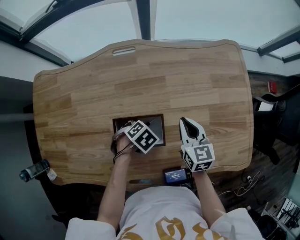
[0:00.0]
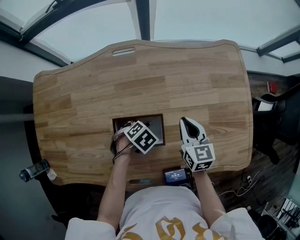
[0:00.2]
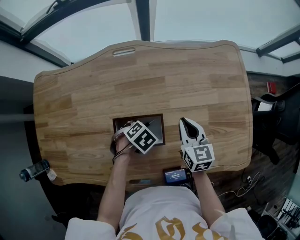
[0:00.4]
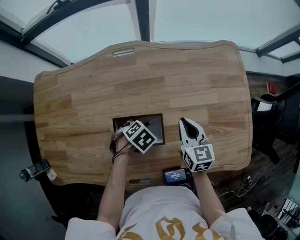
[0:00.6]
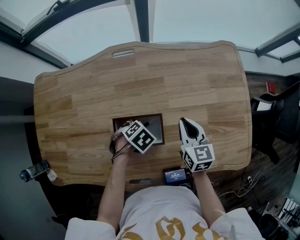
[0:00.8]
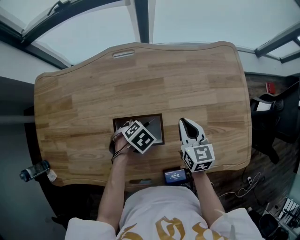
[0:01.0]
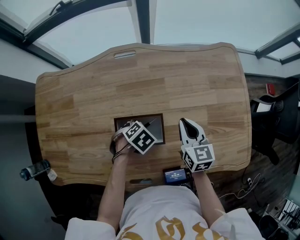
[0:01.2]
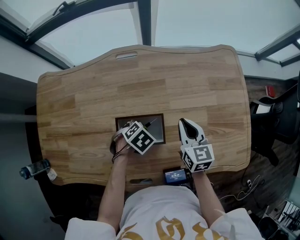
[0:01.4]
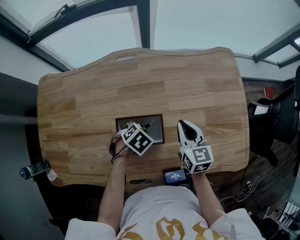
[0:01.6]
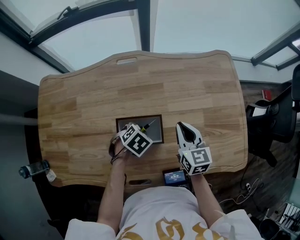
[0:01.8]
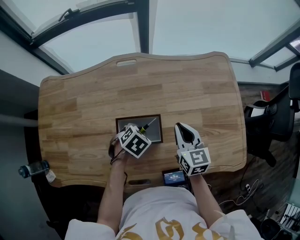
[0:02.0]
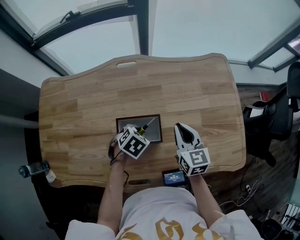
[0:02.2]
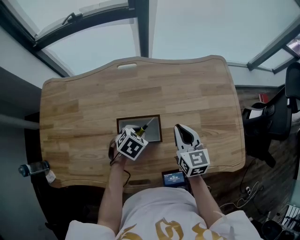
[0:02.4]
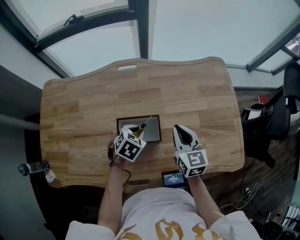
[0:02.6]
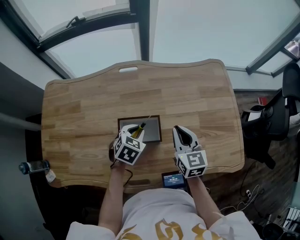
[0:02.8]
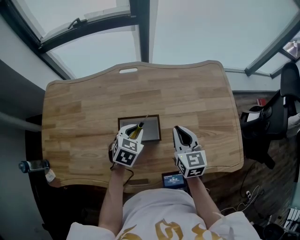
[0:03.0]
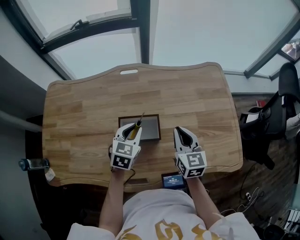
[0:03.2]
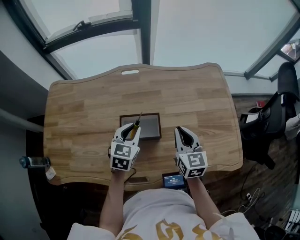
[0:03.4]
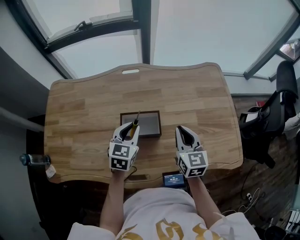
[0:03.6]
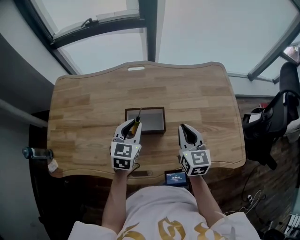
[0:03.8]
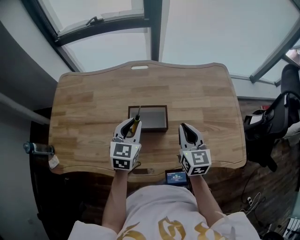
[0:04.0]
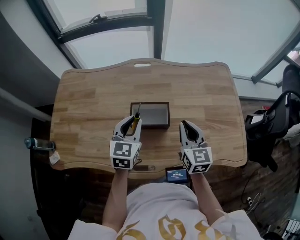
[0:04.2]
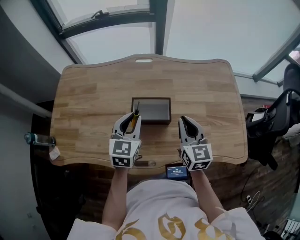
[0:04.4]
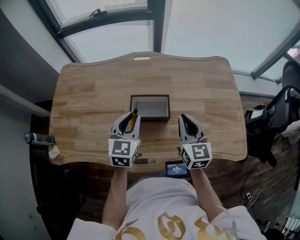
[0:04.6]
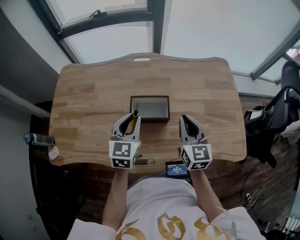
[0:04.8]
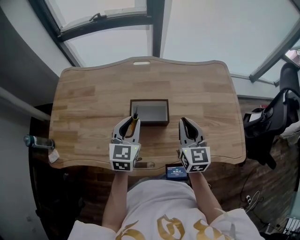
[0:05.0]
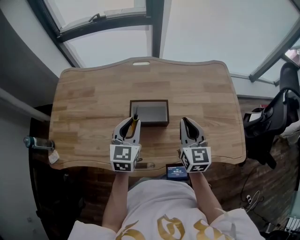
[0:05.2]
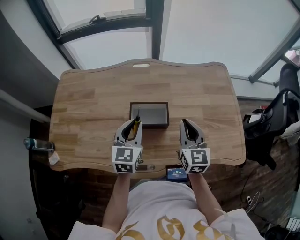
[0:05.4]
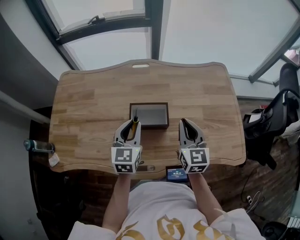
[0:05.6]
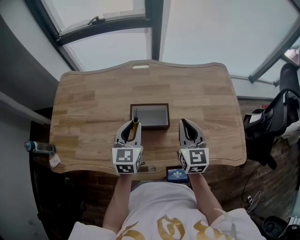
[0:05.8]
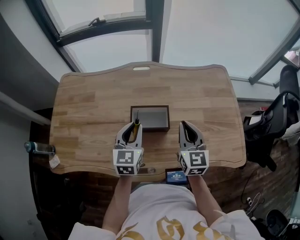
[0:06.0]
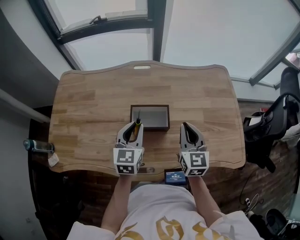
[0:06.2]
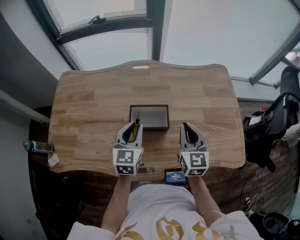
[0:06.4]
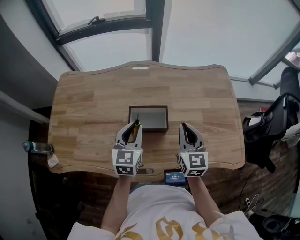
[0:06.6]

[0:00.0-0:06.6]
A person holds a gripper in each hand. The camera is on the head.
0:00.0 to 0:01.6: The grippers make only small movements.
0:01.6 to 0:03.2: The left gripper travels upward by some 10 cm, and tips its fingers upward by some 40 degrees, while the right gripper is displaced upward by roughly 5 cm.
0:03.2 to 0:05.0: Both grippers travel together backward and upward, approximately 10 cm.
0:05.0 to 0:06.6: The grippers make only small movements.

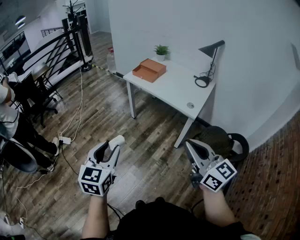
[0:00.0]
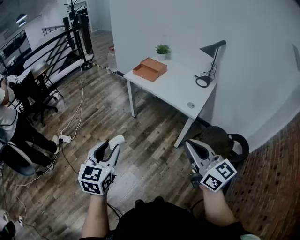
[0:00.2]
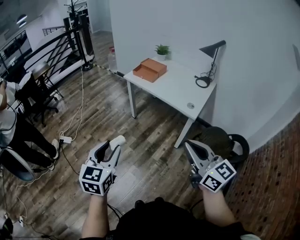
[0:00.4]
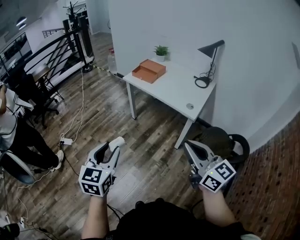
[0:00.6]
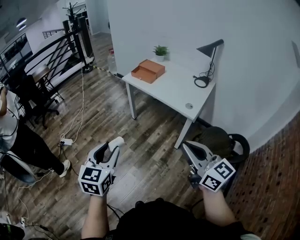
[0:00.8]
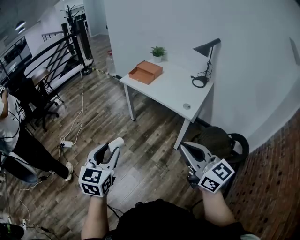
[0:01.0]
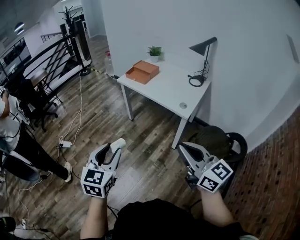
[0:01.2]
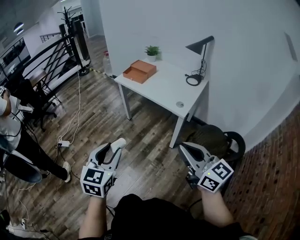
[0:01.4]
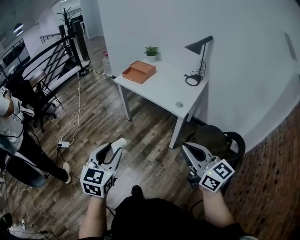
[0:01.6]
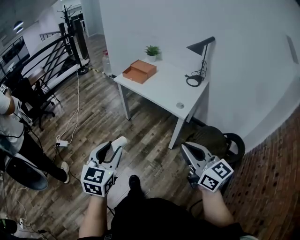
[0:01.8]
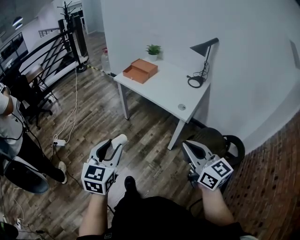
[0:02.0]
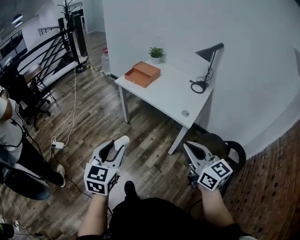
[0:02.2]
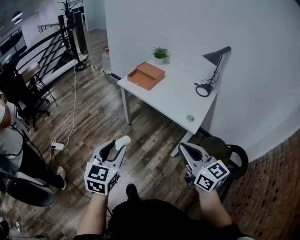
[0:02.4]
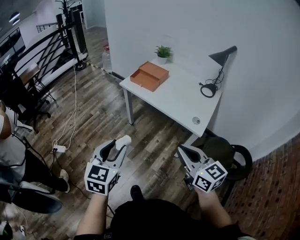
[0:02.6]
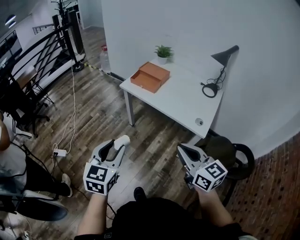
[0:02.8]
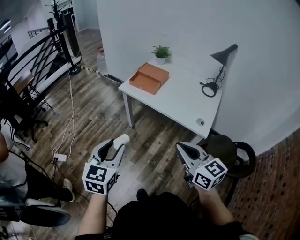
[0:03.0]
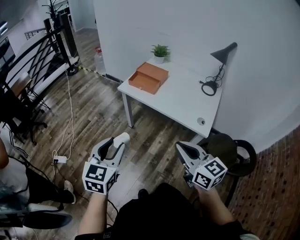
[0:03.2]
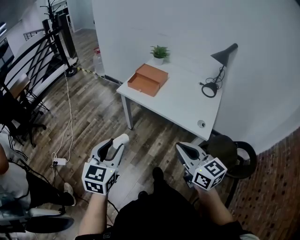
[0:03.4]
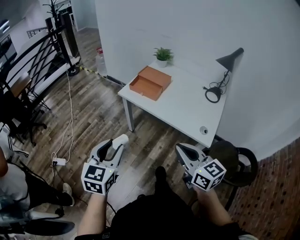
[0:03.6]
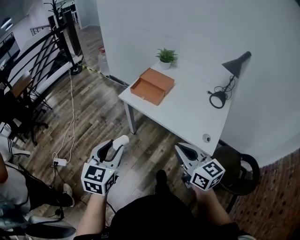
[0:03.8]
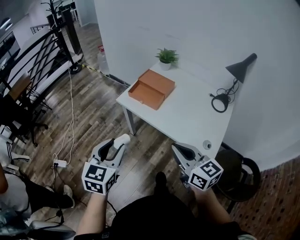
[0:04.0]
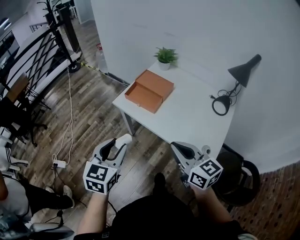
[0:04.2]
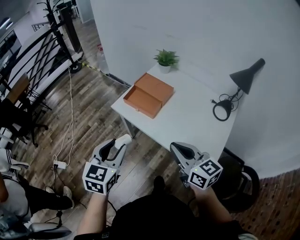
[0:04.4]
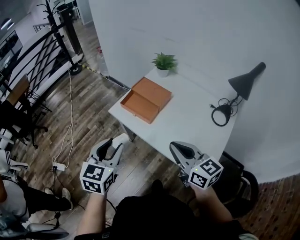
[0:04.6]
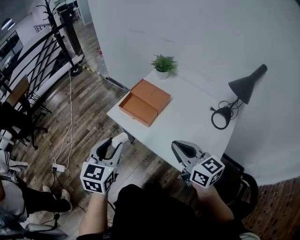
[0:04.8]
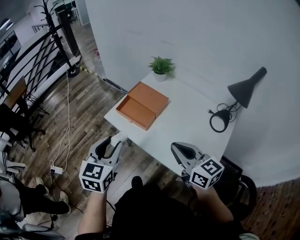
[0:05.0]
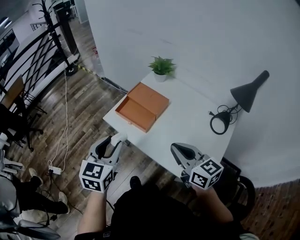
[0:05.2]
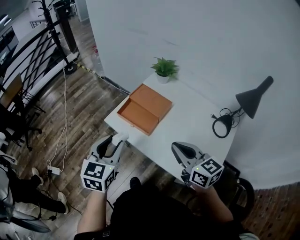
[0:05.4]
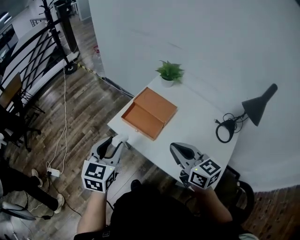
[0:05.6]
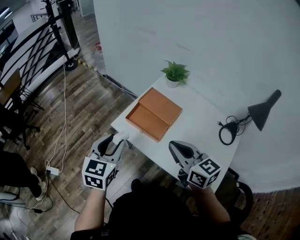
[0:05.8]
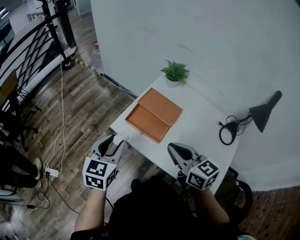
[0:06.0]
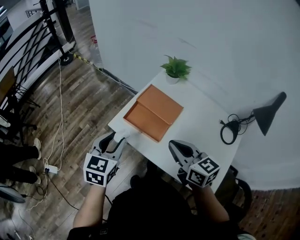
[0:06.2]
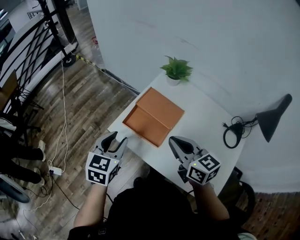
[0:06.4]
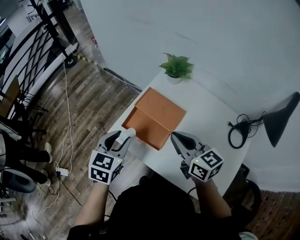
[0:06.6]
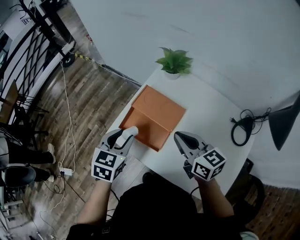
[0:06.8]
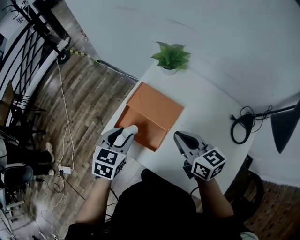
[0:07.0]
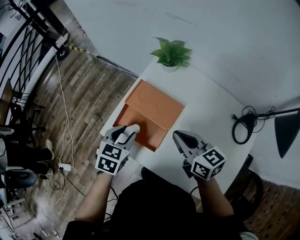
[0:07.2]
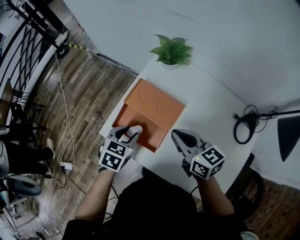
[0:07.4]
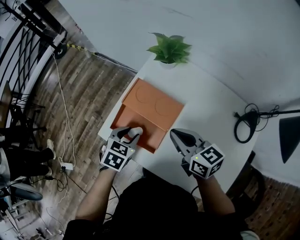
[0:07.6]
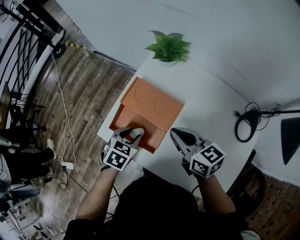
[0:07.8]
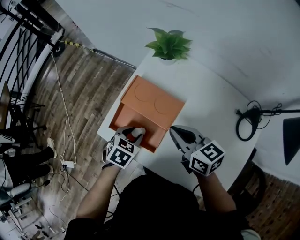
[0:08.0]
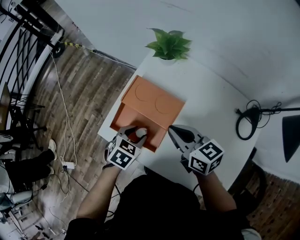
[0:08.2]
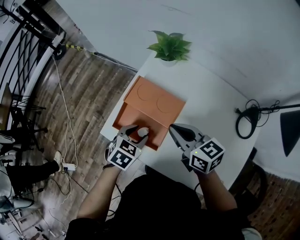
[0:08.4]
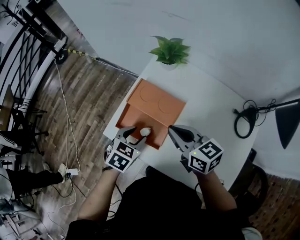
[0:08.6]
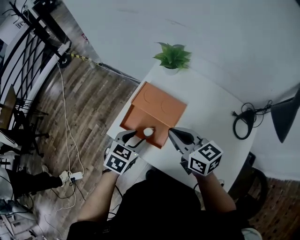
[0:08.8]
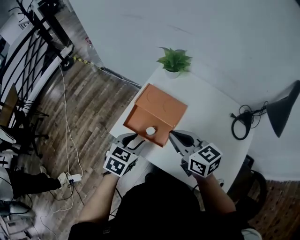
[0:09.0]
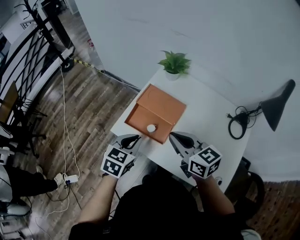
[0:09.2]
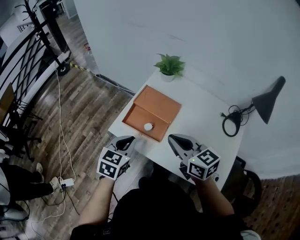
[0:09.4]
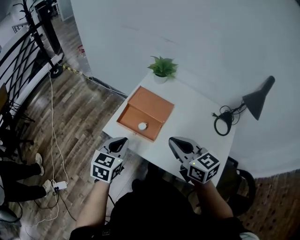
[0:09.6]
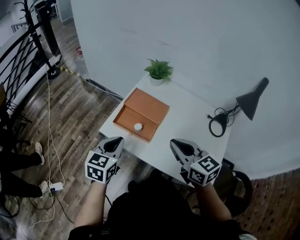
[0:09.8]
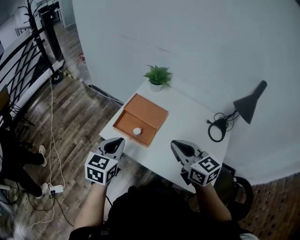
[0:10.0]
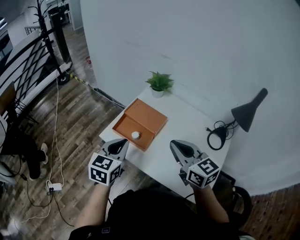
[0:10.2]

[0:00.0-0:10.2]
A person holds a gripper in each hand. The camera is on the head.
0:00.0 to 0:01.4: Both grippers travel together to the right, about 10 cm.
0:01.4 to 0:03.0: The left gripper moves forward, roughly 30 cm. The right gripper shifts approximately 30 cm forward and to the left.
0:03.0 to 0:04.4: The two grippers go roughly 30 cm forward.
0:04.4 to 0:05.8: Both grippers travel together forward, approximately 20 cm.
0:05.8 to 0:07.2: Both grippers travel together forward, downward and to the right, approximately 25 cm. The left gripper swivels about 30 degrees.
0:07.2 to 0:08.8: The right gripper shifts by approximately 5 cm, while the left gripper moves roughly 10 cm downward and comes back.
0:08.8 to 0:10.2: The left gripper is displaced upward and backward by about 20 cm, changes its angle by approximately 30 degrees, and closes its fingers, while the right gripper is displaced backward and upward by approximately 15 cm.

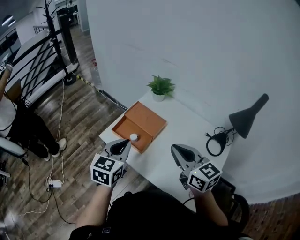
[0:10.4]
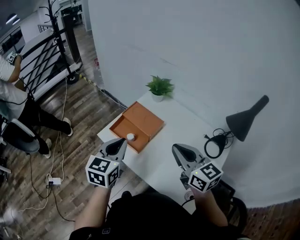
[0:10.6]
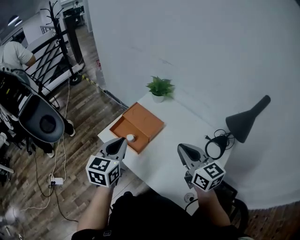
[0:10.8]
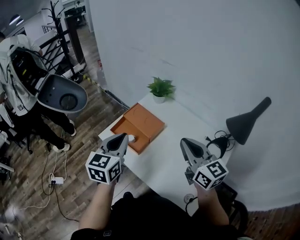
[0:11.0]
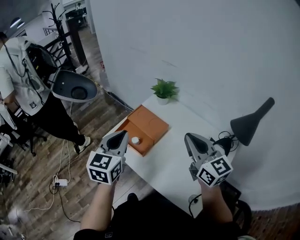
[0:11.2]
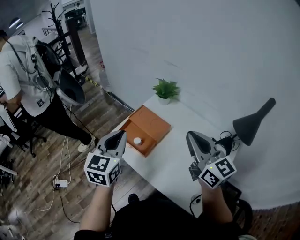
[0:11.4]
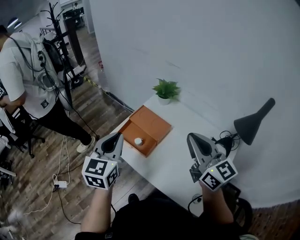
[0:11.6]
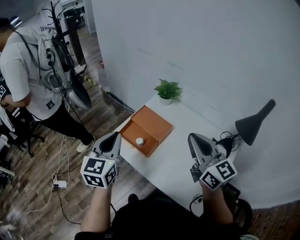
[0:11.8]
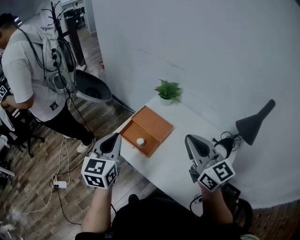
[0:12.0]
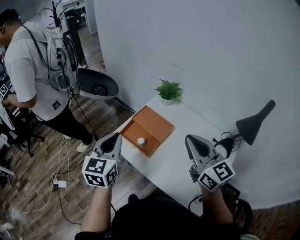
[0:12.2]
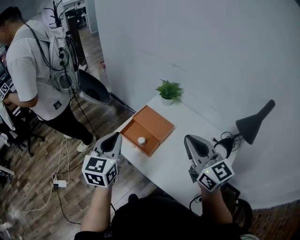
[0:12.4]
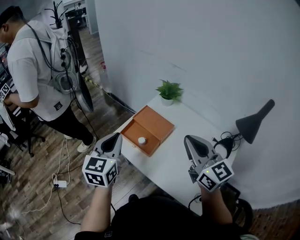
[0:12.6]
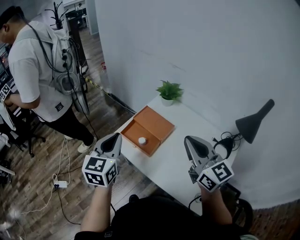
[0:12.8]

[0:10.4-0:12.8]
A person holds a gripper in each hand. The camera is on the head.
0:10.4 to 0:11.6: The grippers both shift upward by roughly 10 cm.
0:11.6 to 0:12.8: The grippers move only a little.

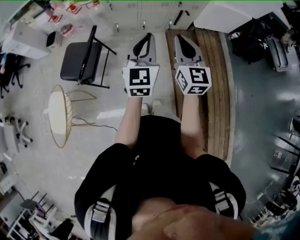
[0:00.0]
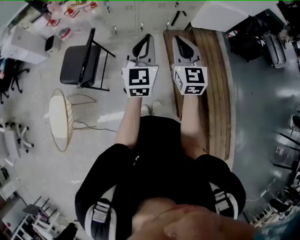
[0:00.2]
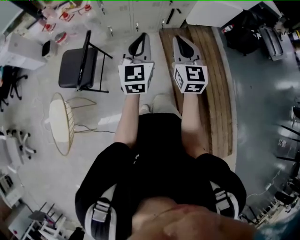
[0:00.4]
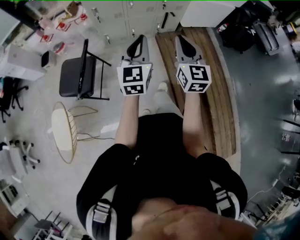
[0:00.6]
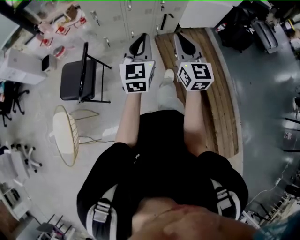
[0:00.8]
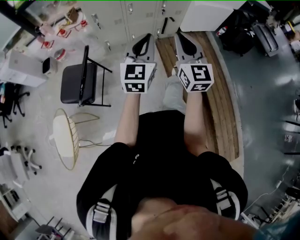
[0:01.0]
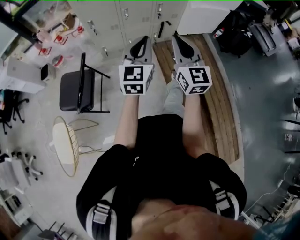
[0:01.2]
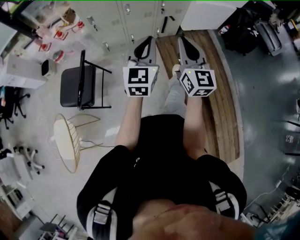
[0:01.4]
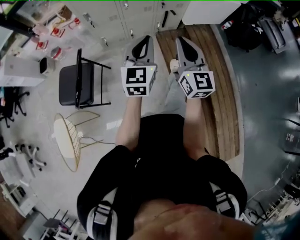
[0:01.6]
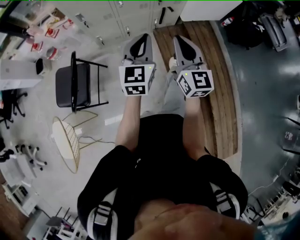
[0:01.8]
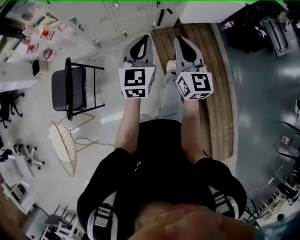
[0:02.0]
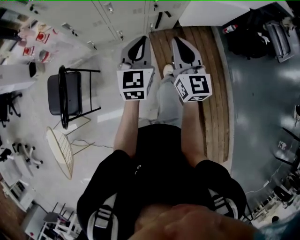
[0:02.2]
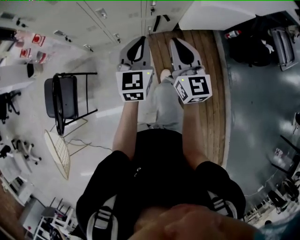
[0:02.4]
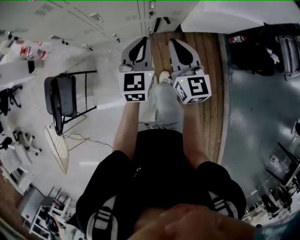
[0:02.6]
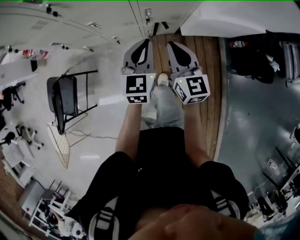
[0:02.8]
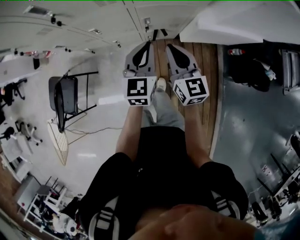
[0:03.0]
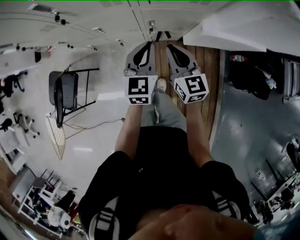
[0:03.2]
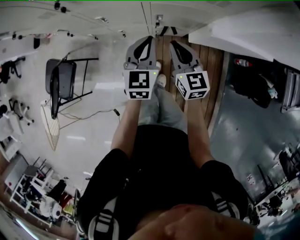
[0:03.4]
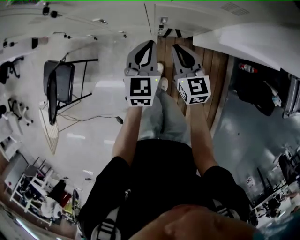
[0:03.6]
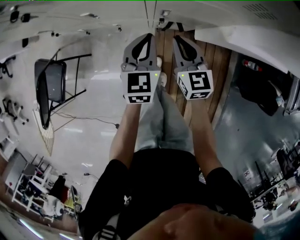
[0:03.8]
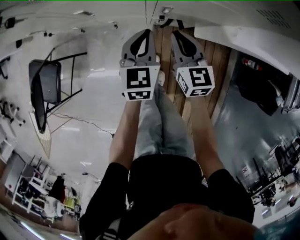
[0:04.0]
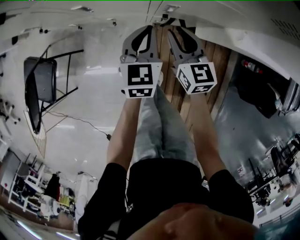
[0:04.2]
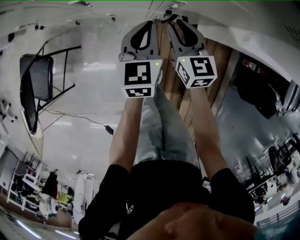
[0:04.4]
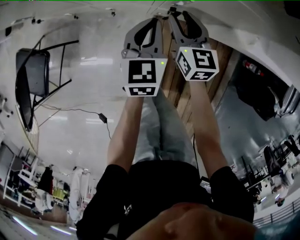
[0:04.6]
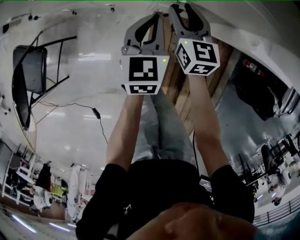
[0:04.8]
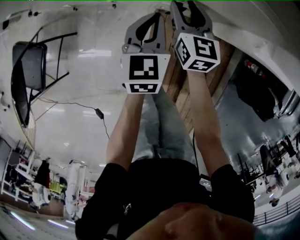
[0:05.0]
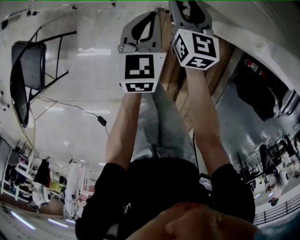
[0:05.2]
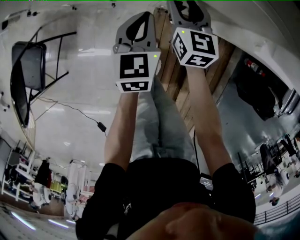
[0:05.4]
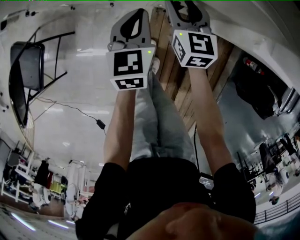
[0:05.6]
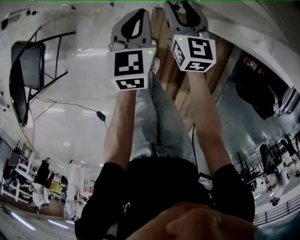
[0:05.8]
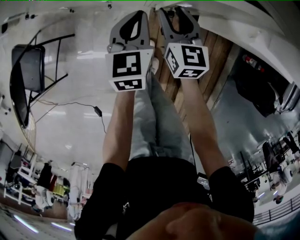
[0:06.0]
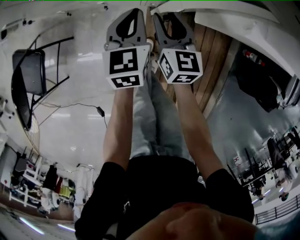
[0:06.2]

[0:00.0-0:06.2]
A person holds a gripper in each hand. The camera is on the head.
0:00.0 to 0:01.6: Both grippers travel together forward and to the right, some 15 cm.
0:01.6 to 0:03.2: The two grippers travel together, forward and to the right, about 60 cm. The left gripper turns by some 20 degrees, while the right gripper turns by approximately 30 degrees.
0:03.2 to 0:04.6: The grippers both shift downward and forward by roughly 30 cm. The right gripper opens up.
0:04.6 to 0:06.2: There are only small adjustments of the grippers.
